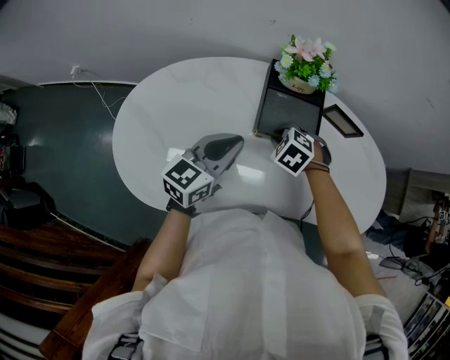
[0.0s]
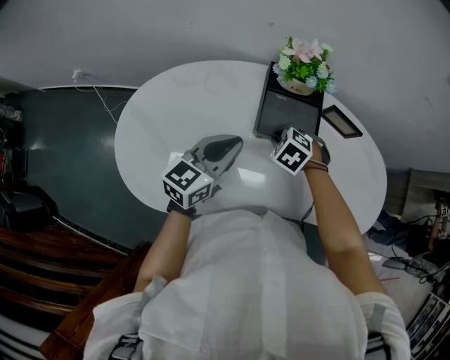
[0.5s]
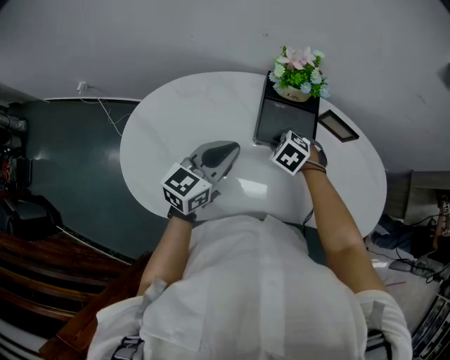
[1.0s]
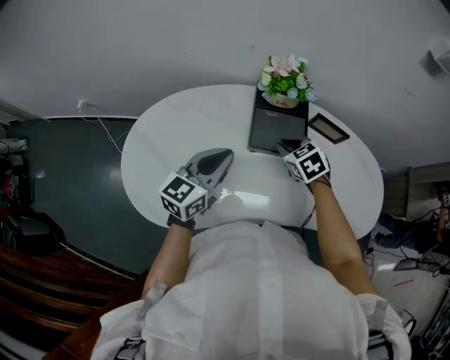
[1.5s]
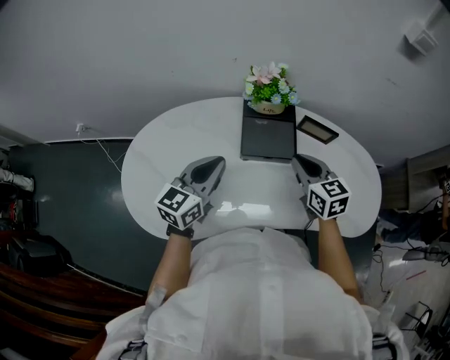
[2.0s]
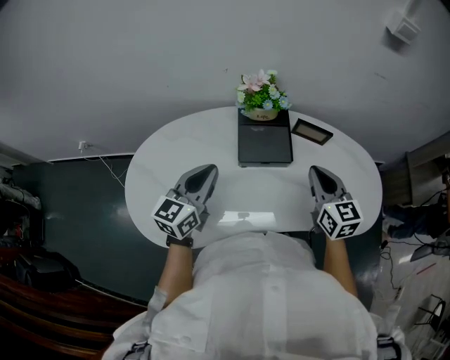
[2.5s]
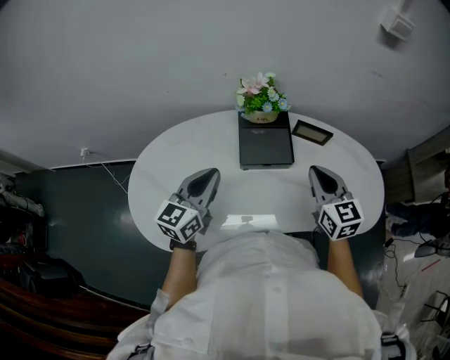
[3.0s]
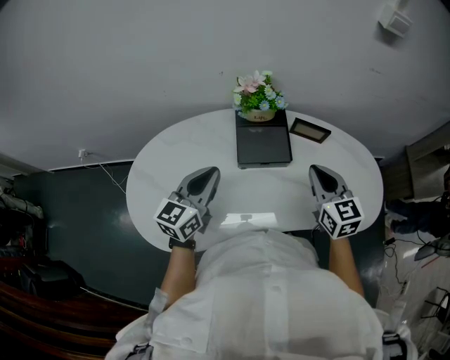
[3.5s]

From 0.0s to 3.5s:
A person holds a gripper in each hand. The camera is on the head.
From 0.0s to 2.0s: The left gripper travels upward by about 5 cm. Meanwhile the right gripper shifts approximately 20 cm upward and to the right, and tilts its fingers roughly 50 degrees upward.
From 2.0s to 3.5s: The right gripper travels to the right by about 5 cm.

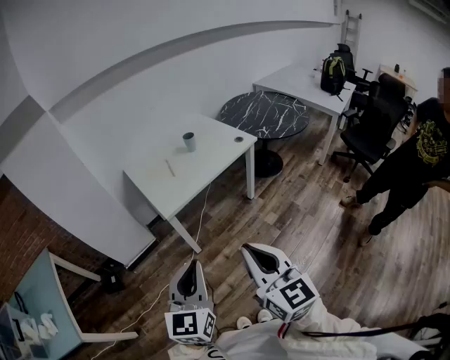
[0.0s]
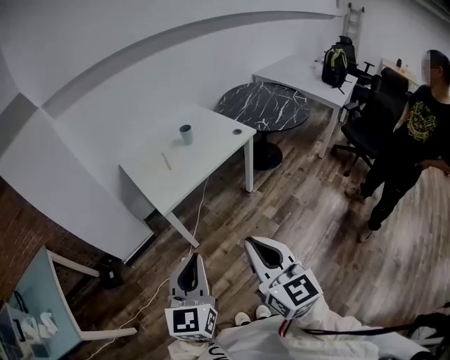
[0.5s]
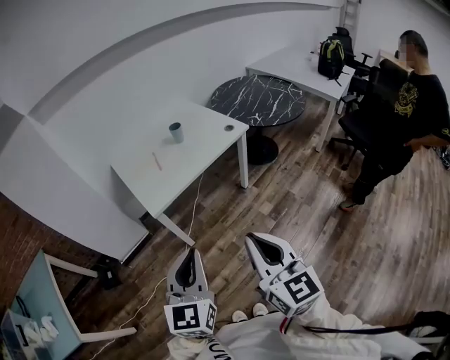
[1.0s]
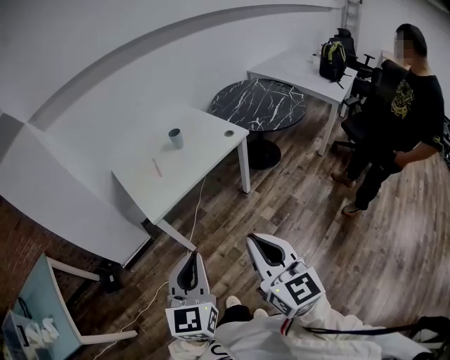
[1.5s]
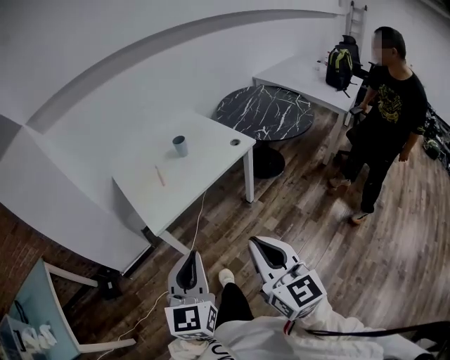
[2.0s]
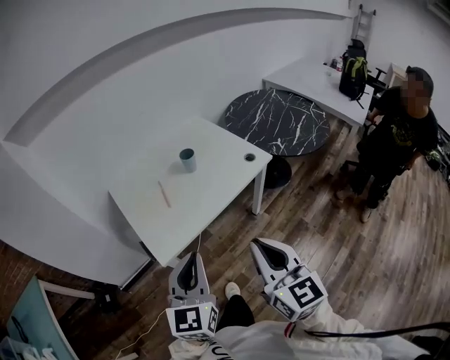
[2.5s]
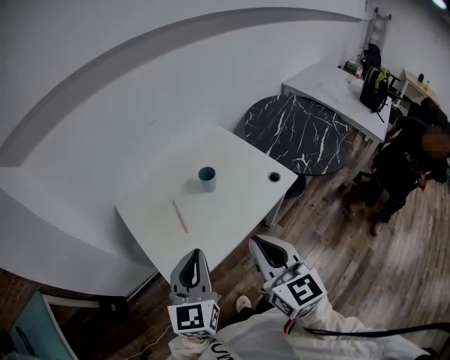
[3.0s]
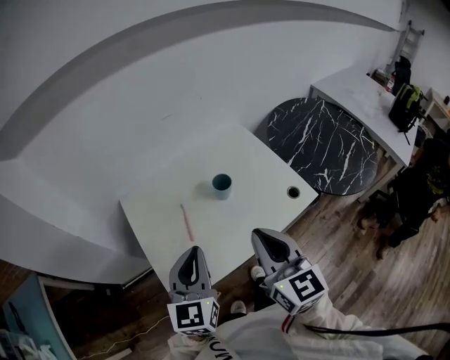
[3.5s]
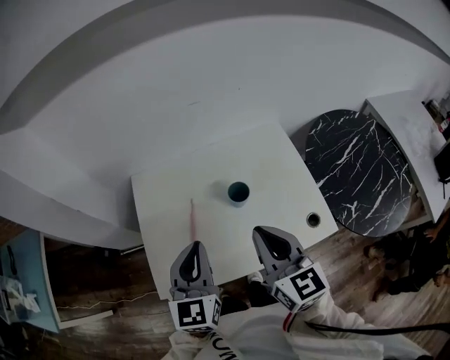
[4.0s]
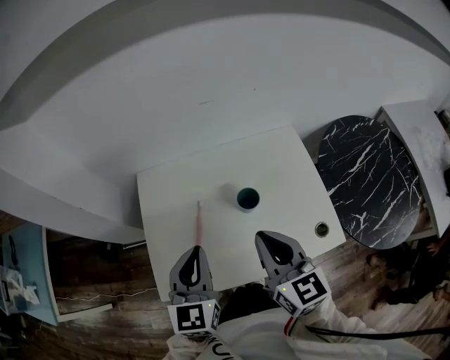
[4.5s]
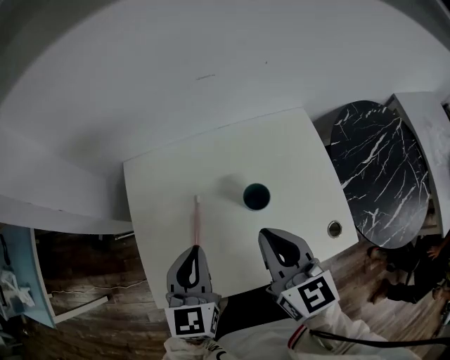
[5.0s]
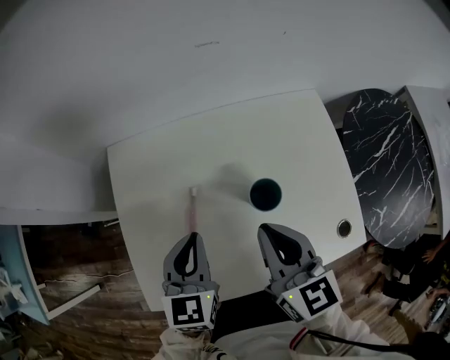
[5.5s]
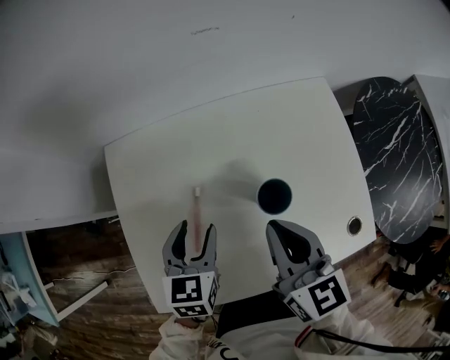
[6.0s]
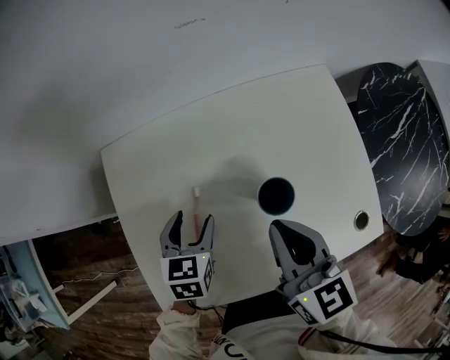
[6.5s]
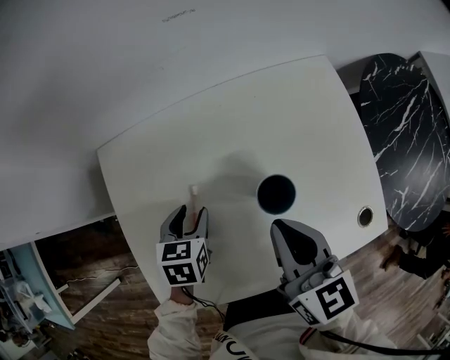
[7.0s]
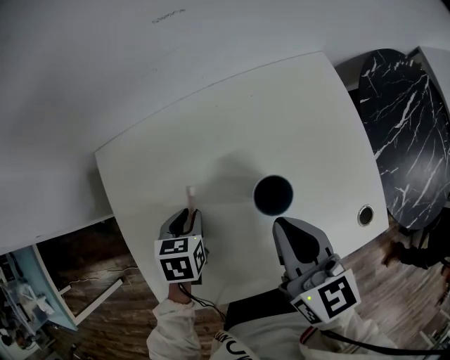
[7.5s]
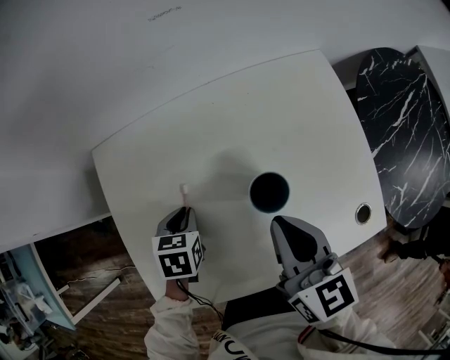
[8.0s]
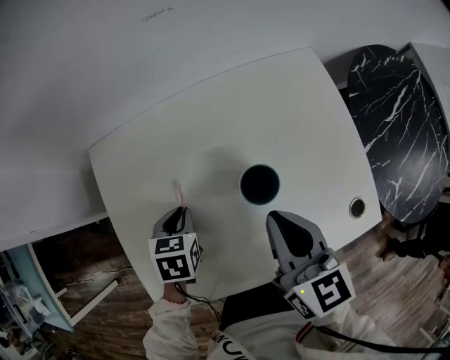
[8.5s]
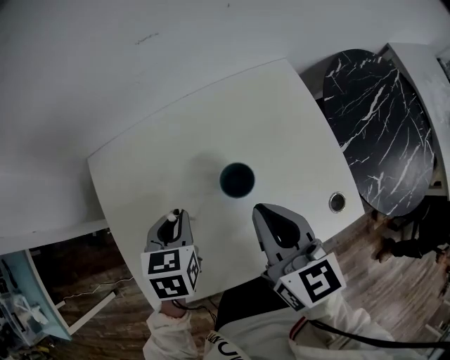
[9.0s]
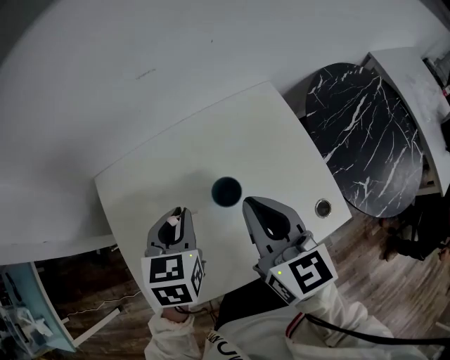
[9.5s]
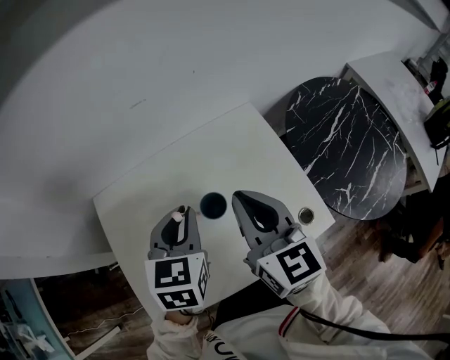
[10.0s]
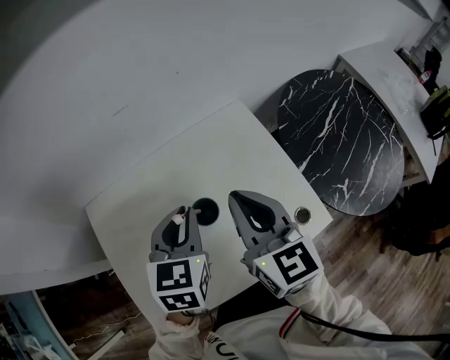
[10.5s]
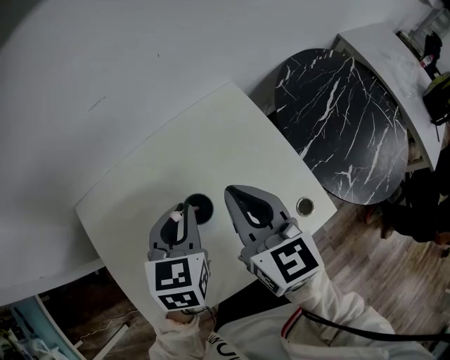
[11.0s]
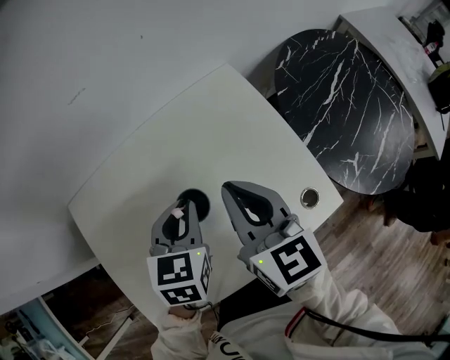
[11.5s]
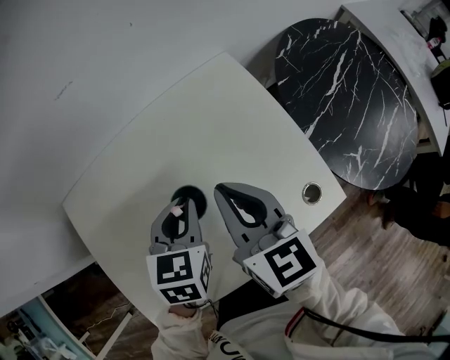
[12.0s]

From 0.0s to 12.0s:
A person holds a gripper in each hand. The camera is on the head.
From 0.0s to 2.0s: The two grippers go roughly 15 cm forward and to the right.
From 2.0s to 4.0s: The two grippers travel together, roughly 60 cm. The right gripper swivels approximately 30 degrees. The left gripper rotates approximately 30 degrees.
From 4.0s to 6.0s: Both grippers travel together downward and forward, some 25 cm. The left gripper swivels some 30 degrees, and opens up.
From 6.0s to 8.0s: The left gripper is displaced downward by some 10 cm, turns by about 20 degrees, and closes up.
From 8.0s to 10.0s: The right gripper moves upward, roughly 15 cm. Meanwhile the left gripper is displaced upward and to the right by roughly 30 cm, and turns by approximately 30 degrees.
From 10.0s to 12.0s: The grippers both shift downward by about 15 cm.

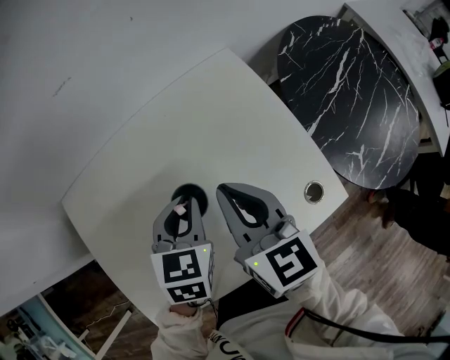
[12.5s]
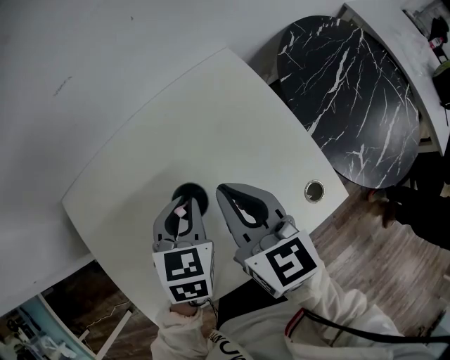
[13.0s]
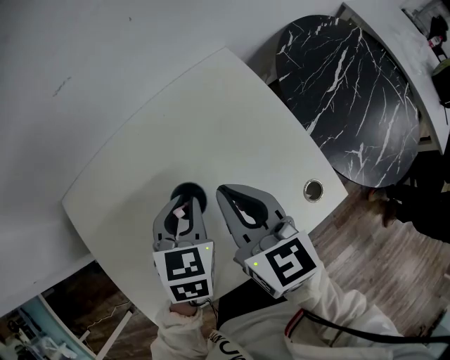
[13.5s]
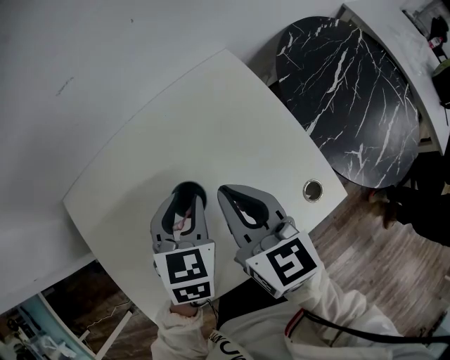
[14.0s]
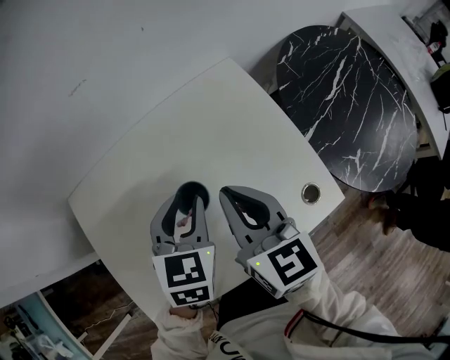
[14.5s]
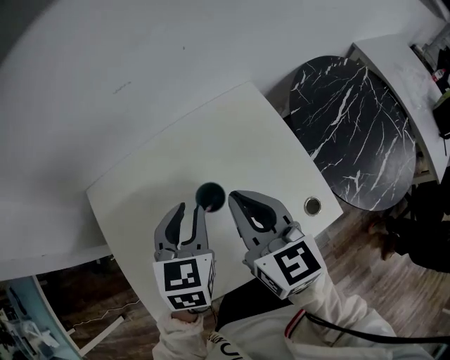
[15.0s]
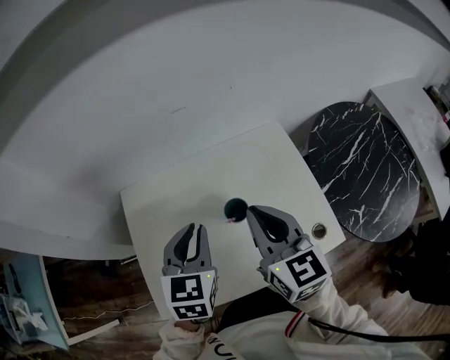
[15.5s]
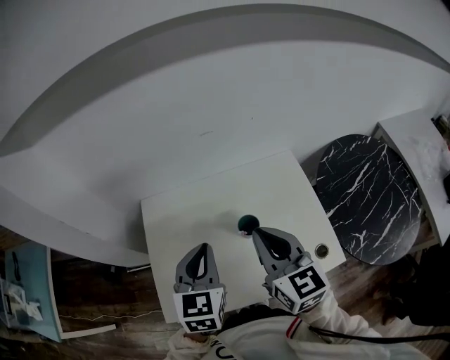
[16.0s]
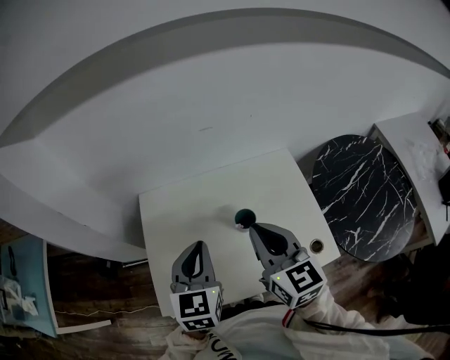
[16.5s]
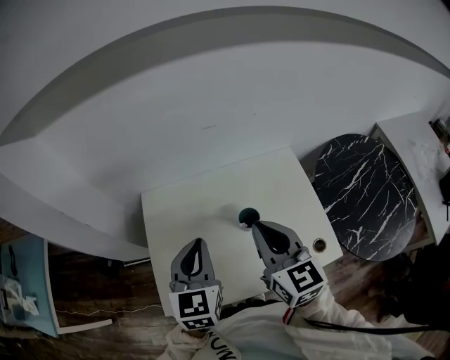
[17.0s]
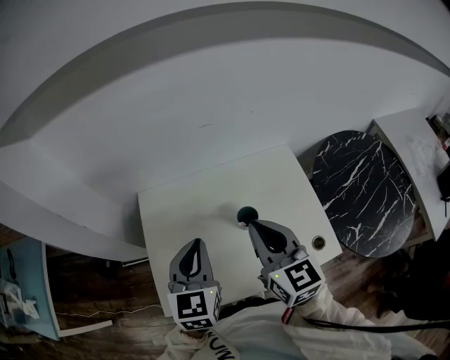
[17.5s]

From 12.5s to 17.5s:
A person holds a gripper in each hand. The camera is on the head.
From 12.5s to 15.0s: The grippers both shift upward by some 10 cm.
From 15.0s to 17.5s: The two grippers go approximately 15 cm upward, to the left and backward. The left gripper swivels about 20 degrees, and closes up.

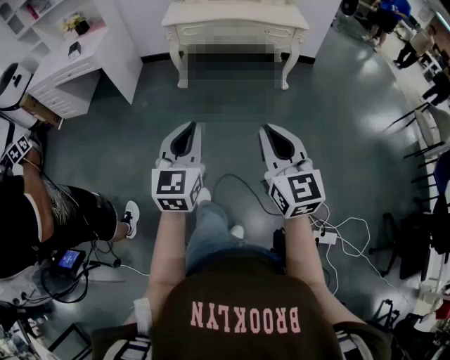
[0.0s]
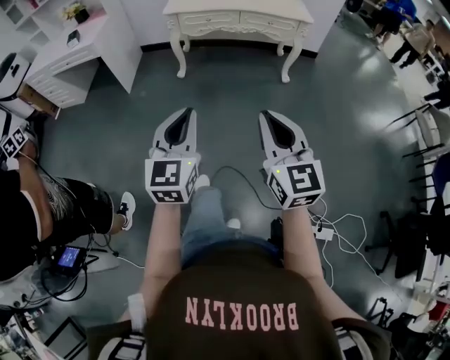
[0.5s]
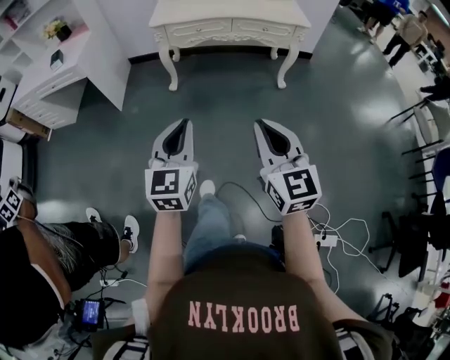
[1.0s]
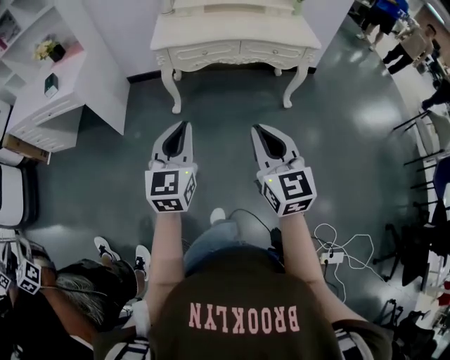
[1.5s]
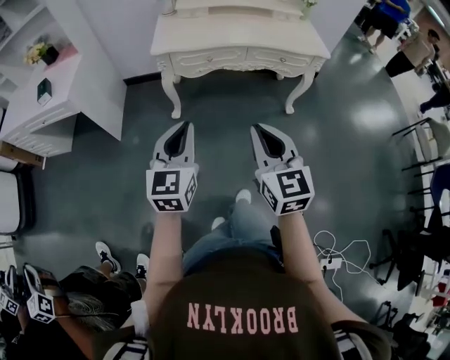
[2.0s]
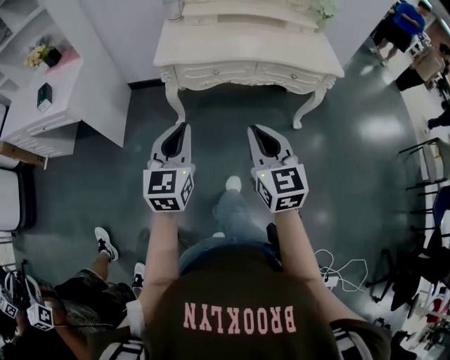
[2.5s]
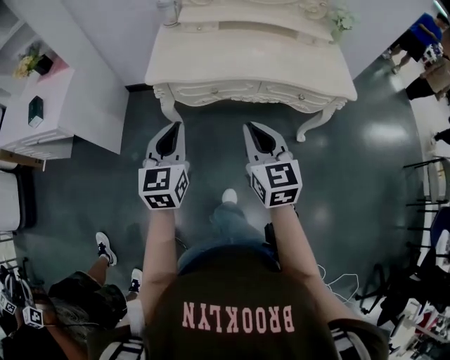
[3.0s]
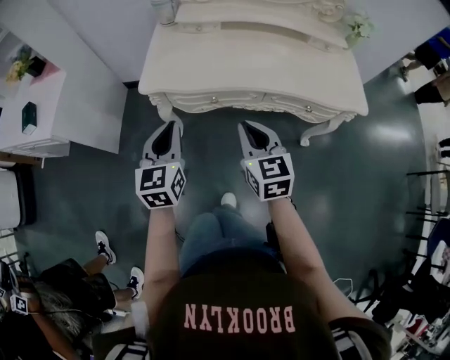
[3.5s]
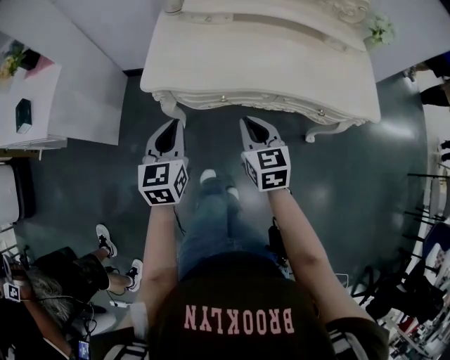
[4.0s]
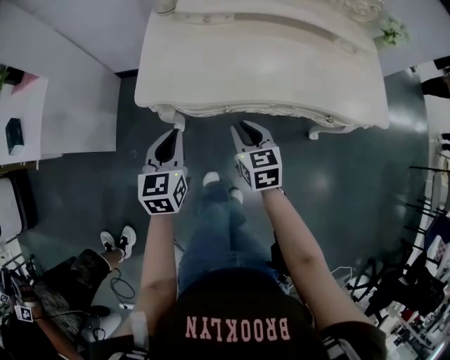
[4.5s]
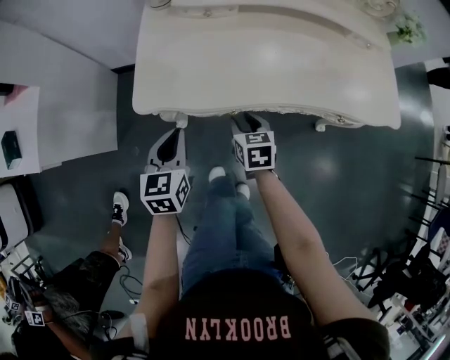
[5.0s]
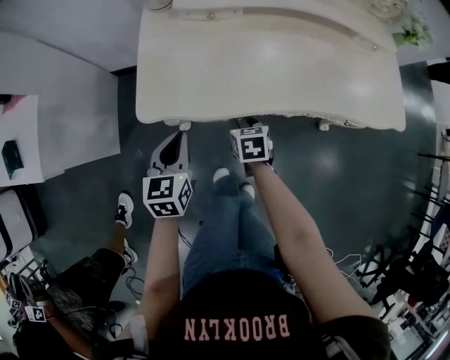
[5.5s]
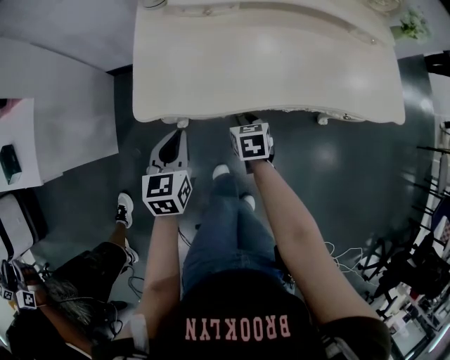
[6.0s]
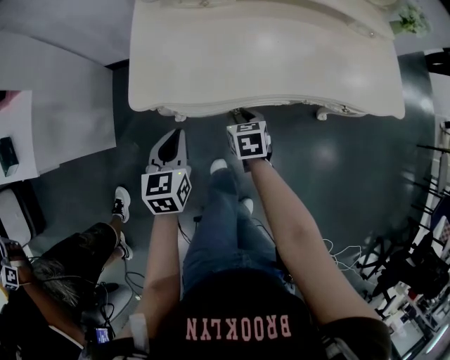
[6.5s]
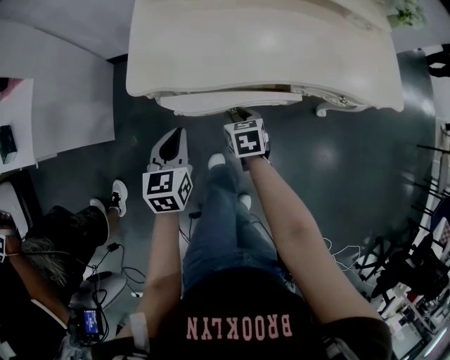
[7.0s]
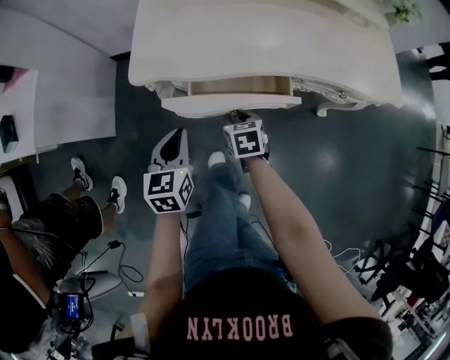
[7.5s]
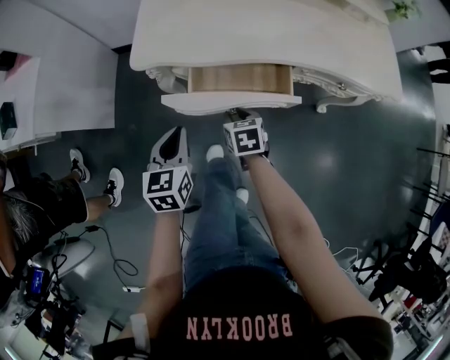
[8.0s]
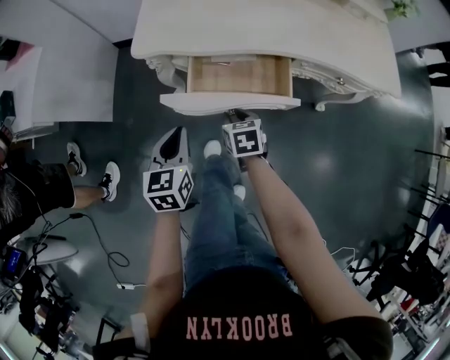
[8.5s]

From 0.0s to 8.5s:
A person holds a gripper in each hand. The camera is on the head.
From 0.0s to 2.0s: The two grippers travel together, forward, some 40 cm.
From 2.0s to 4.0s: The two grippers travel together, forward, approximately 40 cm. The right gripper changes its angle by approximately 20 degrees.
From 4.0s to 6.5s: The right gripper shifts about 25 cm downward and forward, rotates approximately 30 degrees, and opens up, while the left gripper moves downward and forward, approximately 15 cm.
From 6.5s to 8.5s: The grippers both shift backward by roughly 15 cm.
